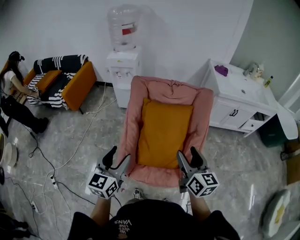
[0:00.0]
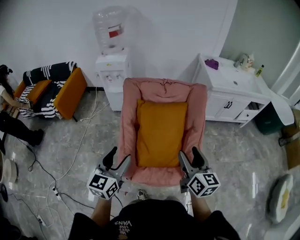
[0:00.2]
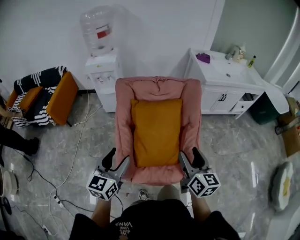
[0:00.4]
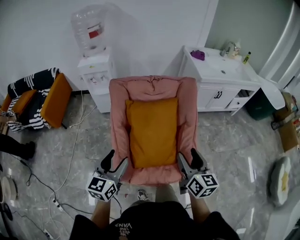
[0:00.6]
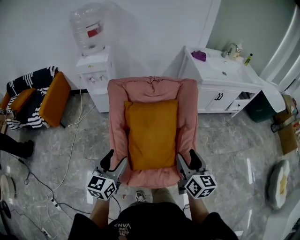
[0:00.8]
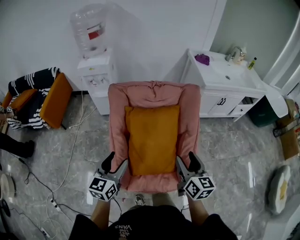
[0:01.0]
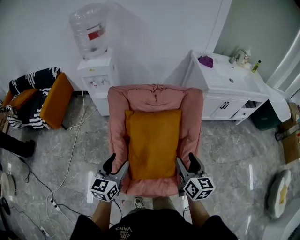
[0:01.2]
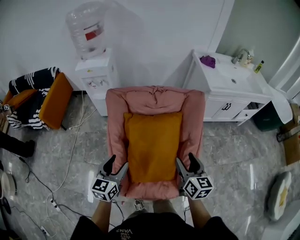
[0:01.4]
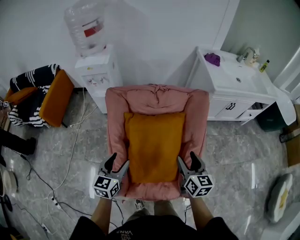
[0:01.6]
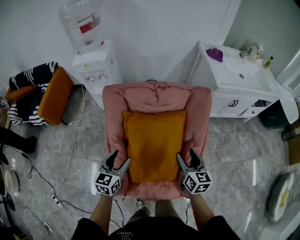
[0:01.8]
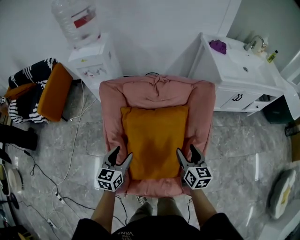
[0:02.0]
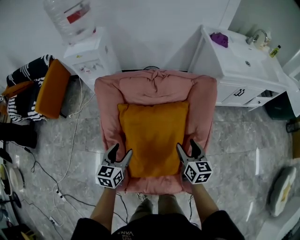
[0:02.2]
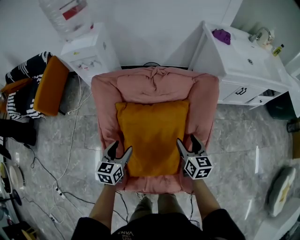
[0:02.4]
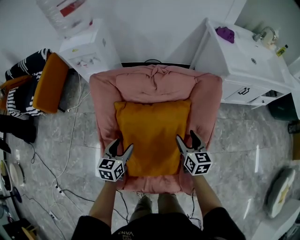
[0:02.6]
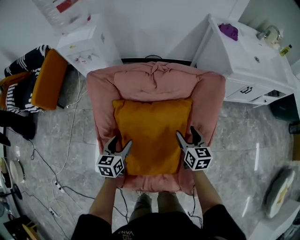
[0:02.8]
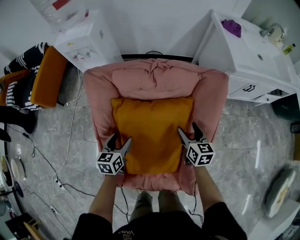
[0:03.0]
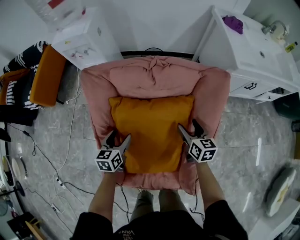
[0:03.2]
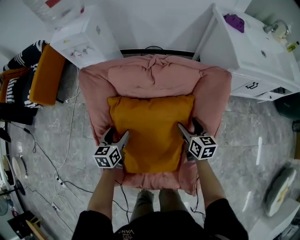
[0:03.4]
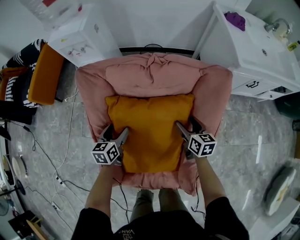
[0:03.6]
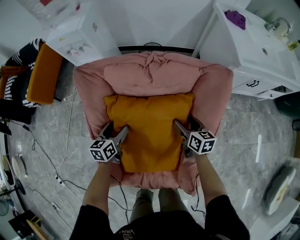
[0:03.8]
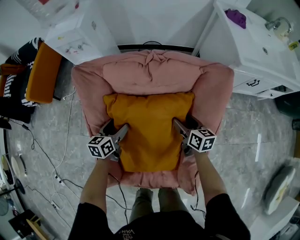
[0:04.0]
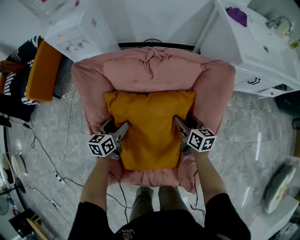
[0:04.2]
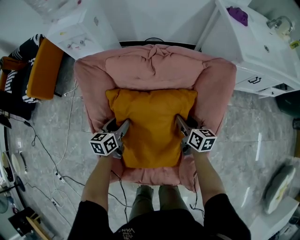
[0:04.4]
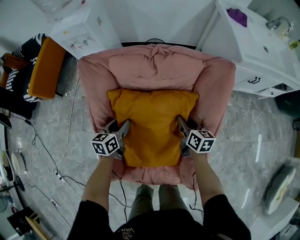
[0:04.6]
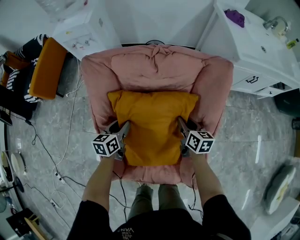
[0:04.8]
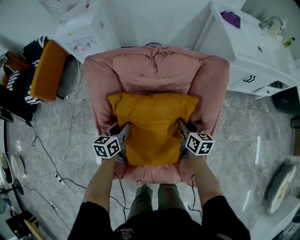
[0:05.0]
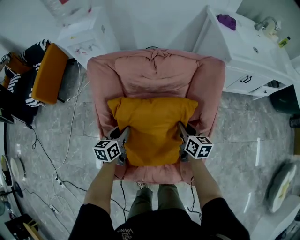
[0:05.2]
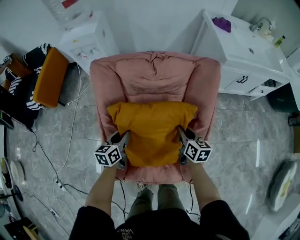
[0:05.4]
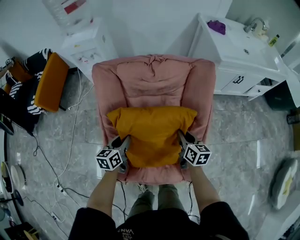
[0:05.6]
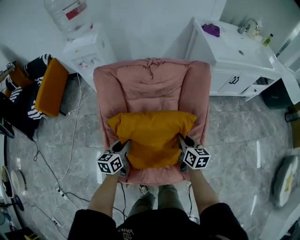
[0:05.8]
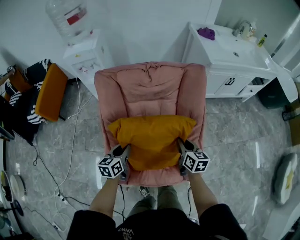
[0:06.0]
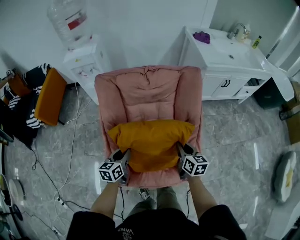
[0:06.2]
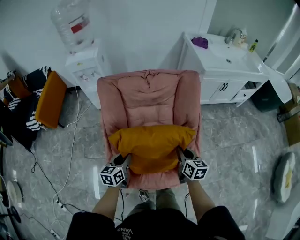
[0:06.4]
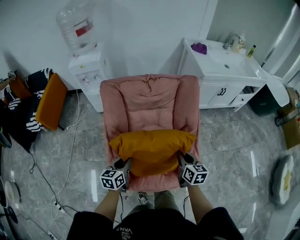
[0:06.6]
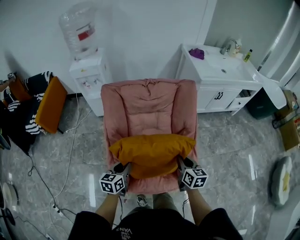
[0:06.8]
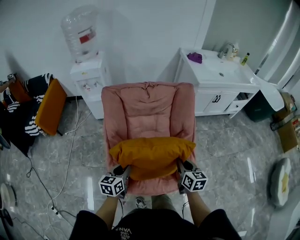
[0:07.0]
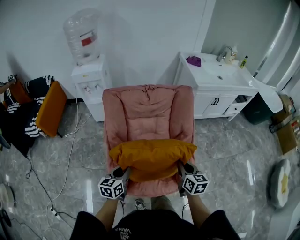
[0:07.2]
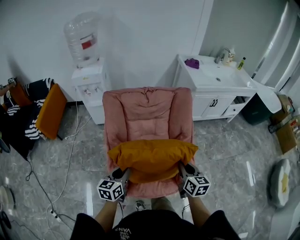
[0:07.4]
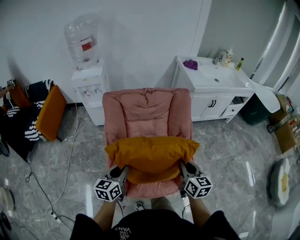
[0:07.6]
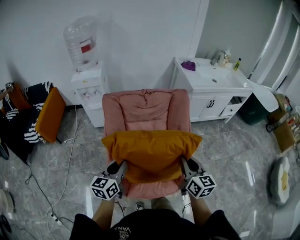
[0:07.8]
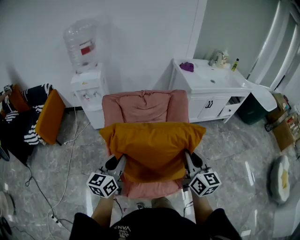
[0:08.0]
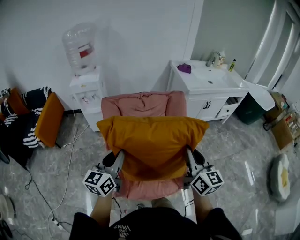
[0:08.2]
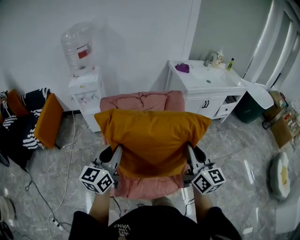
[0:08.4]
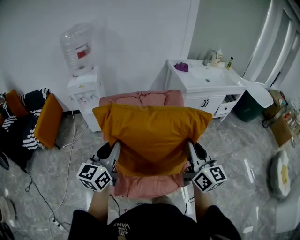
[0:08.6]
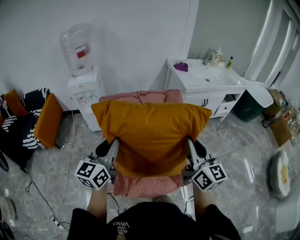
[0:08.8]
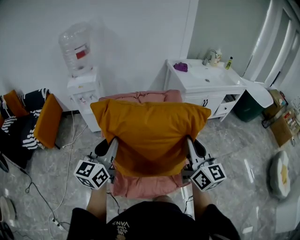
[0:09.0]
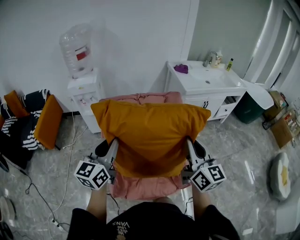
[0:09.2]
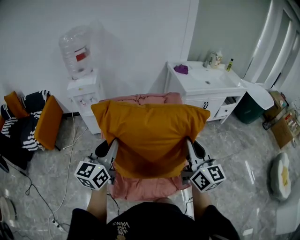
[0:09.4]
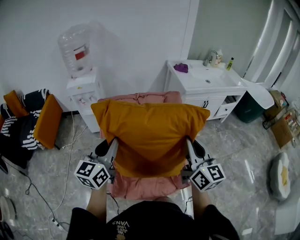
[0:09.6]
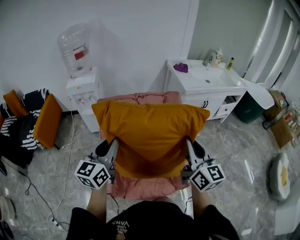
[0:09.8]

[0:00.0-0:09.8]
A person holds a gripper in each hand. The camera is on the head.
0:00.0 to 0:01.4: The two grippers go roughly 20 cm forward and downward.
0:01.4 to 0:02.8: The right gripper goes roughly 25 cm forward and downward; the left gripper travels downward and forward by approximately 25 cm.
0:02.8 to 0:04.2: The right gripper moves downward, about 10 cm. Meanwhile the left gripper goes about 10 cm forward and downward.
0:04.2 to 0:05.6: Both grippers move backward and upward, some 15 cm. The left gripper closes up. Meanwhile the right gripper closes.
0:05.6 to 0:07.0: Both grippers move backward and upward, approximately 15 cm.
0:07.0 to 0:08.4: Both grippers move upward, approximately 25 cm. The right gripper points its fingers approximately 30 degrees further upward; the left gripper turns by about 30 degrees.
0:08.4 to 0:09.8: There are only small adjustments of the grippers.

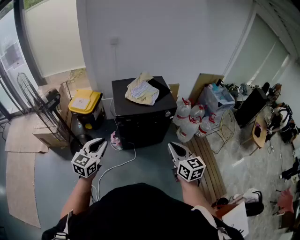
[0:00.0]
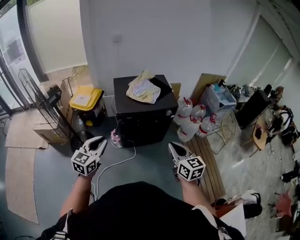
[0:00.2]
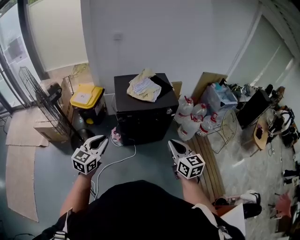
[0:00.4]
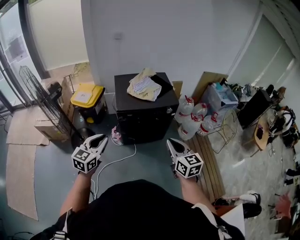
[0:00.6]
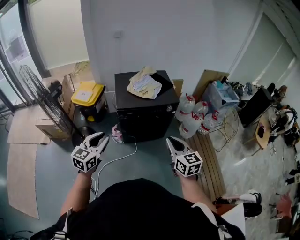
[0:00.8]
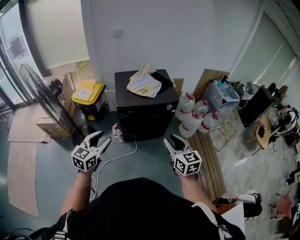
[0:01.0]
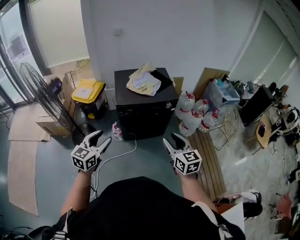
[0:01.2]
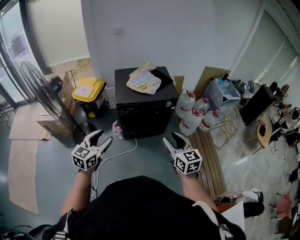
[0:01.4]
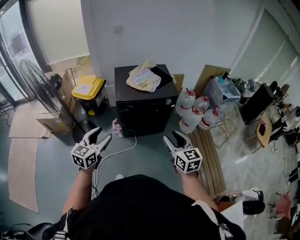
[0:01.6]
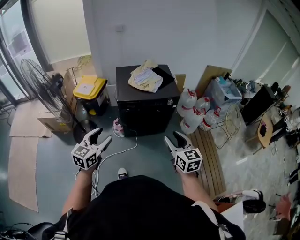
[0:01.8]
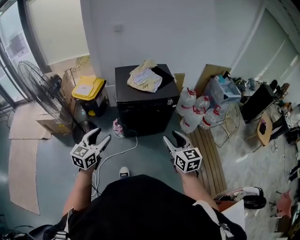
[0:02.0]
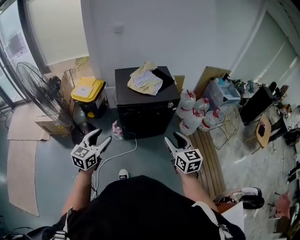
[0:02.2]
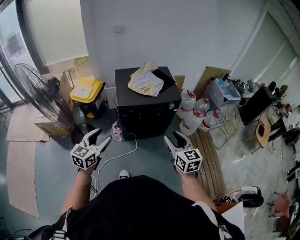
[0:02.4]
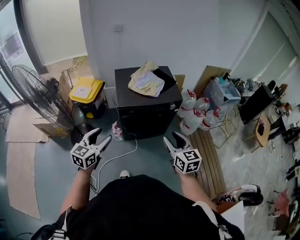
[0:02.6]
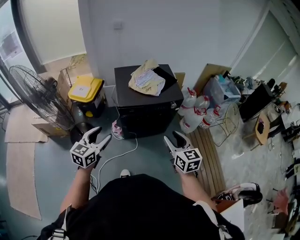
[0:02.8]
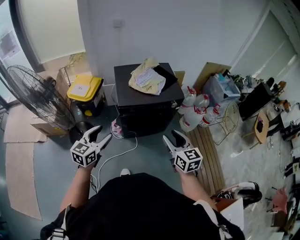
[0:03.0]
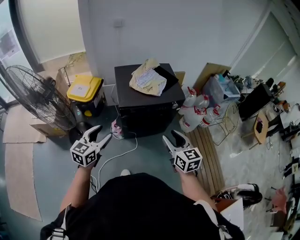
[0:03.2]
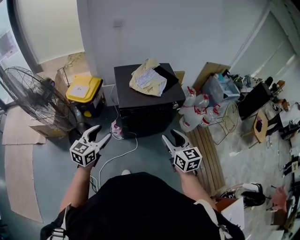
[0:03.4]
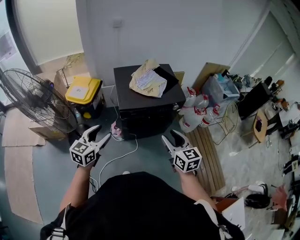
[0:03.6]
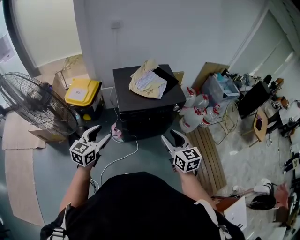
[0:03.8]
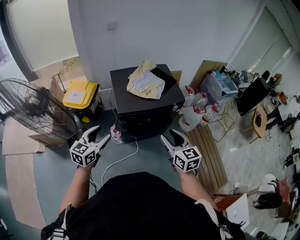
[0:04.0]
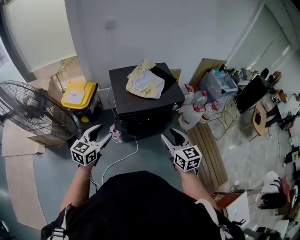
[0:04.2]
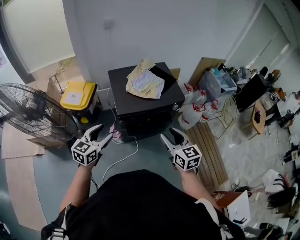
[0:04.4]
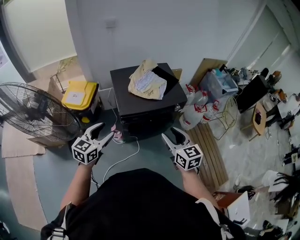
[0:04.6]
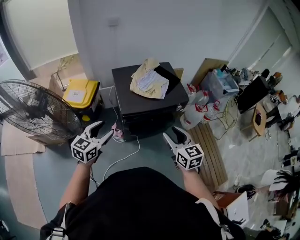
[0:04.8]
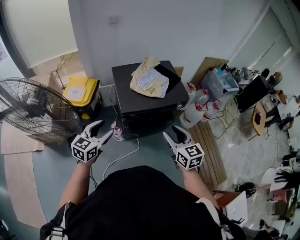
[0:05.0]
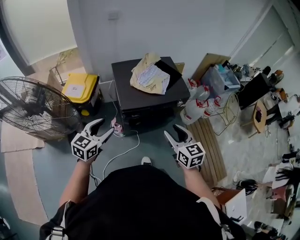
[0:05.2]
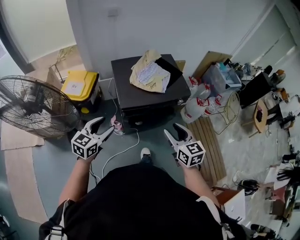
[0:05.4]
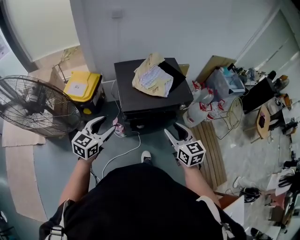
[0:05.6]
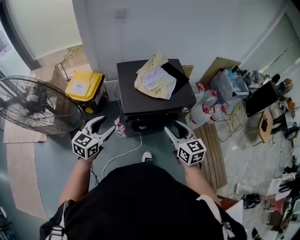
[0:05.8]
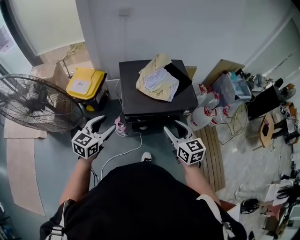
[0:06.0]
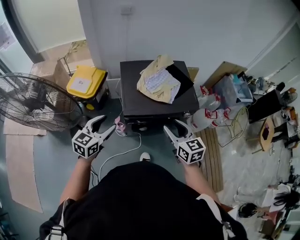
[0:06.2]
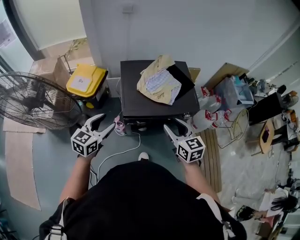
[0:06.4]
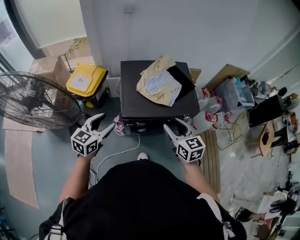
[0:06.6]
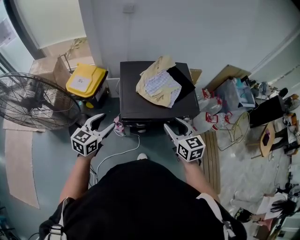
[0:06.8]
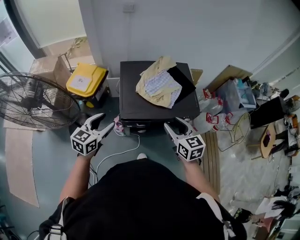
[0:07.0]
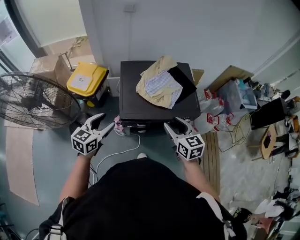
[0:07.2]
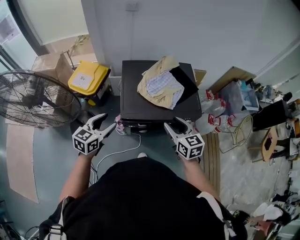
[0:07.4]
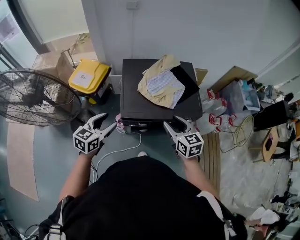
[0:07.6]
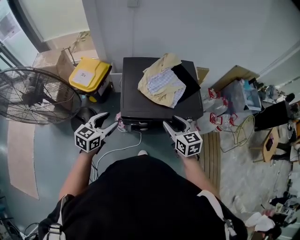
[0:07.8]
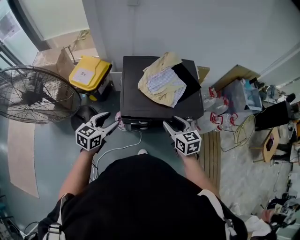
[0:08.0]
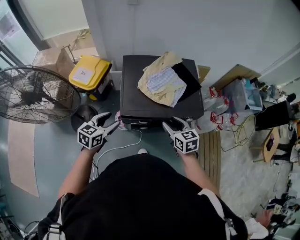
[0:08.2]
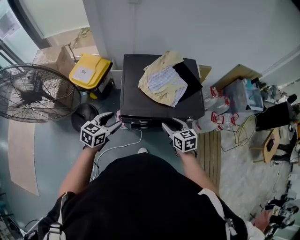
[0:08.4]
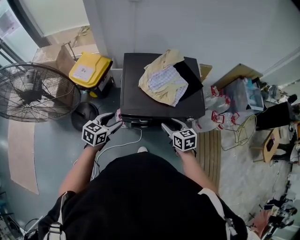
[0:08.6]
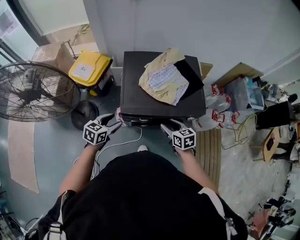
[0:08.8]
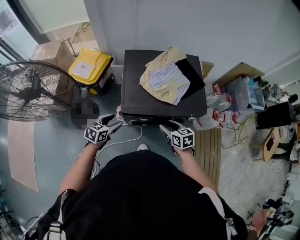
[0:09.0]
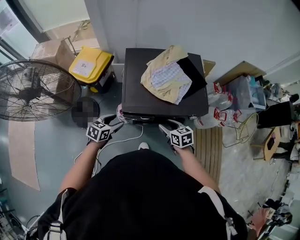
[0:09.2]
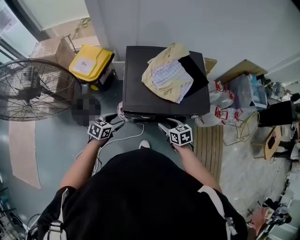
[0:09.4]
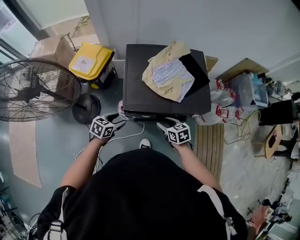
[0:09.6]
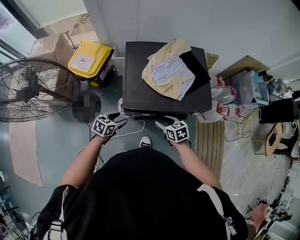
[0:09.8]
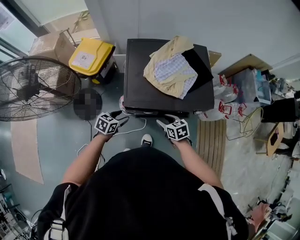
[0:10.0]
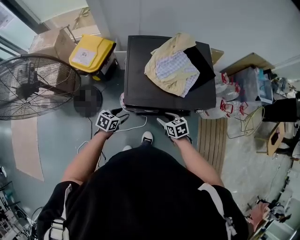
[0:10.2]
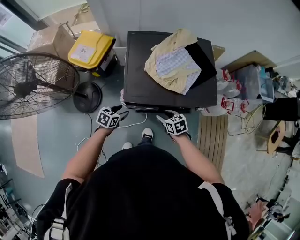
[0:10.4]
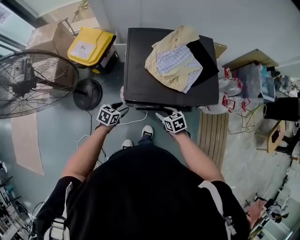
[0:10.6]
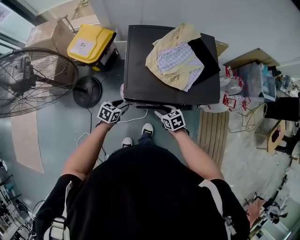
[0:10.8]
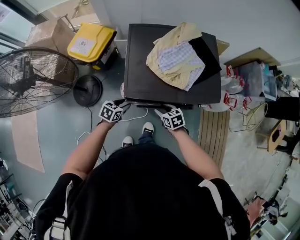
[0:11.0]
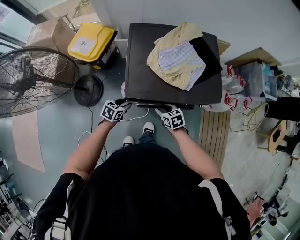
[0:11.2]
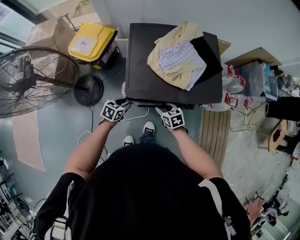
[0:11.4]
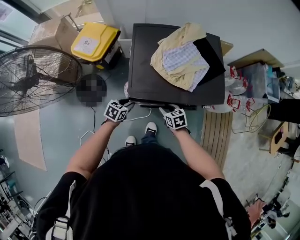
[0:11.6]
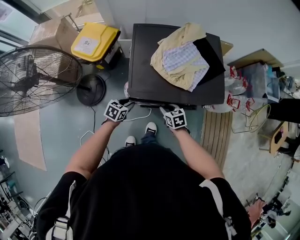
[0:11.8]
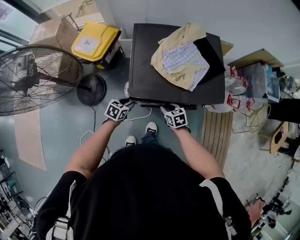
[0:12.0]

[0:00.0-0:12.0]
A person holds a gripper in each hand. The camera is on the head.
0:00.0 to 0:01.6: The left gripper ends up some 5 cm from where it was, and opens, while the right gripper shifts by roughly 5 cm, and opens.
0:01.6 to 0:03.0: Both grippers travel together forward and to the left, about 15 cm.
0:03.0 to 0:04.4: The left gripper moves forward, approximately 10 cm. Meanwhile the right gripper moves forward and to the left, some 10 cm.
0:04.4 to 0:06.0: Both grippers move forward, some 10 cm.
0:06.0 to 0:07.6: The right gripper heads forward, covering approximately 10 cm, while the left gripper travels forward by roughly 5 cm.
0:07.6 to 0:09.0: Both grippers move downward, approximately 15 cm. The right gripper changes its angle by about 20 degrees.
0:09.0 to 0:10.4: Both grippers move downward, roughly 15 cm.
0:10.4 to 0:12.0: The left gripper closes; the right gripper closes up.

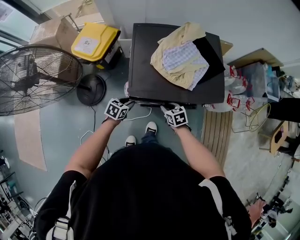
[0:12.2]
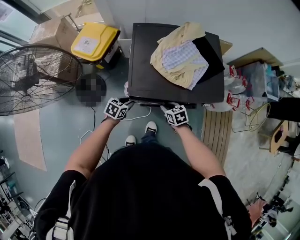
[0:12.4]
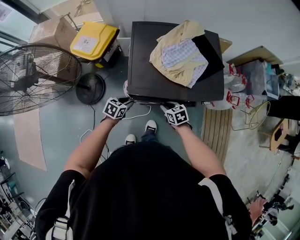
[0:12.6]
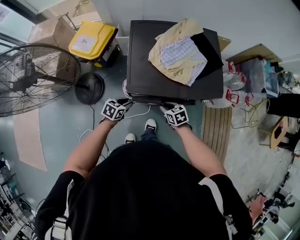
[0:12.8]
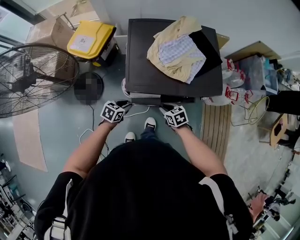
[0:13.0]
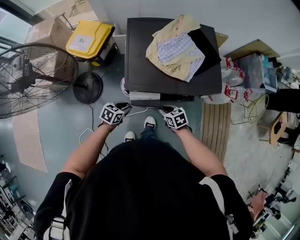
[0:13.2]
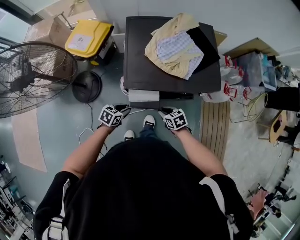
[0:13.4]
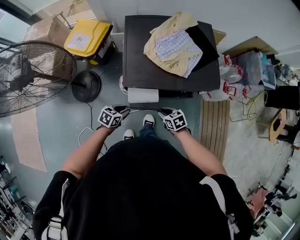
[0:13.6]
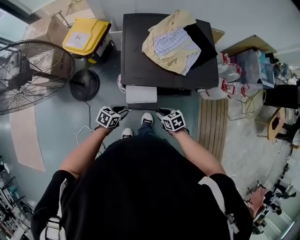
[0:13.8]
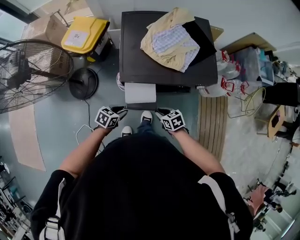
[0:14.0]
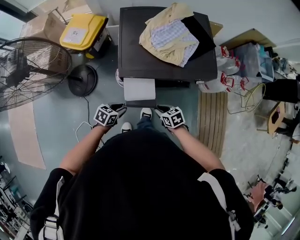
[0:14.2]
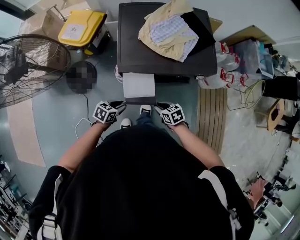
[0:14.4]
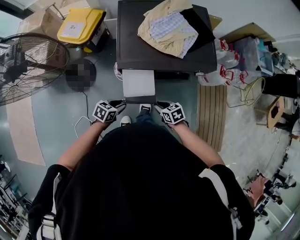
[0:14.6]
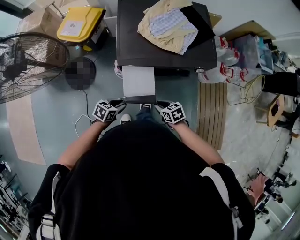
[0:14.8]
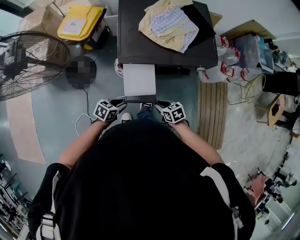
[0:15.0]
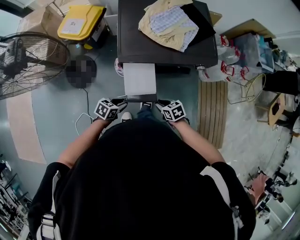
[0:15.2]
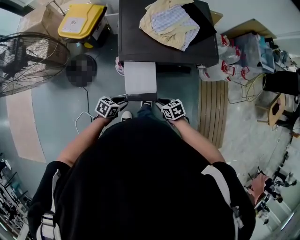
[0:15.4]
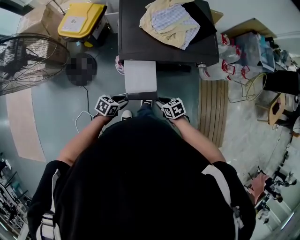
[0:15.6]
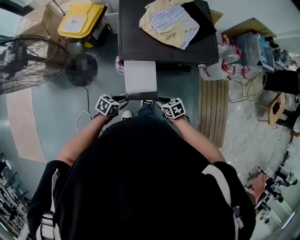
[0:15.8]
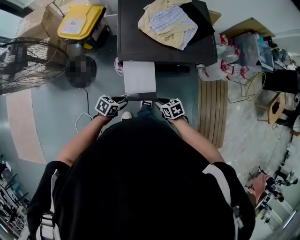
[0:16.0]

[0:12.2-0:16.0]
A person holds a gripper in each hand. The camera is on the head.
0:12.2 to 0:13.4: The right gripper ends up approximately 10 cm from where it was; the left gripper changes place by approximately 10 cm.
0:13.4 to 0:14.8: The right gripper shifts by some 10 cm, while the left gripper changes place by roughly 10 cm.
0:14.8 to 0:16.0: The grippers make only small movements.
